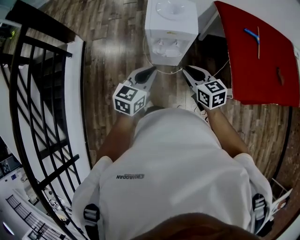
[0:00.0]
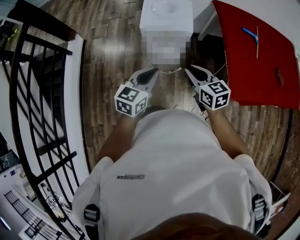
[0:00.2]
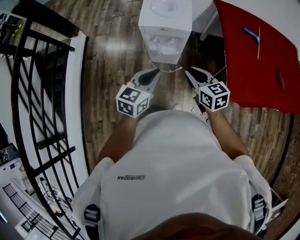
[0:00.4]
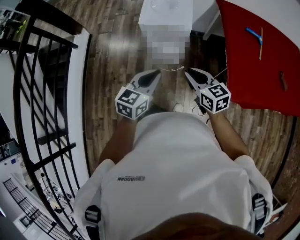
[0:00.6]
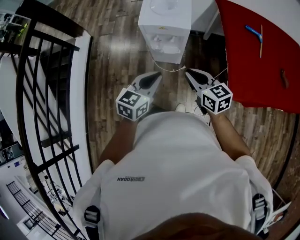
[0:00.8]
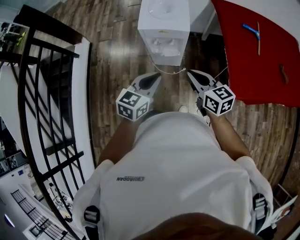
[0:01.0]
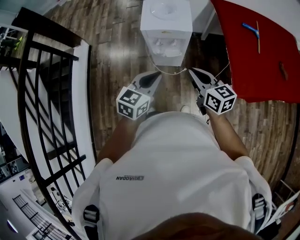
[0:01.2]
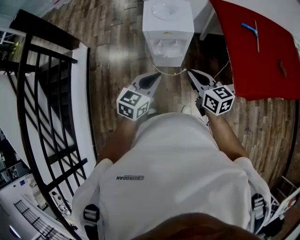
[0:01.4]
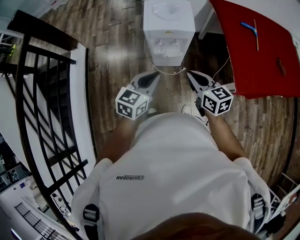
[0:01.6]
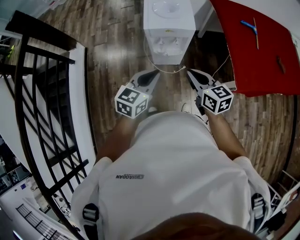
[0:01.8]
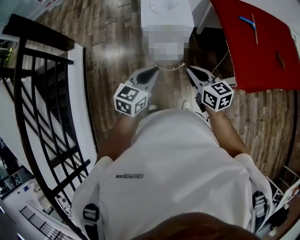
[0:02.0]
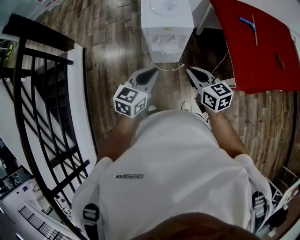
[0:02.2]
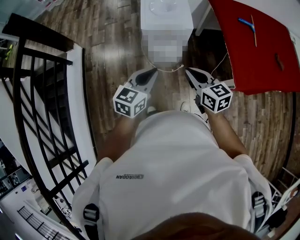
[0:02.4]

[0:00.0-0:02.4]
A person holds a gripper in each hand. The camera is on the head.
0:00.0 to 0:01.2: The left gripper moves to the right, some 5 cm. The right gripper moves some 5 cm.
0:01.2 to 0:02.4: The left gripper travels to the left by roughly 5 cm.

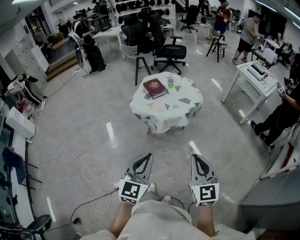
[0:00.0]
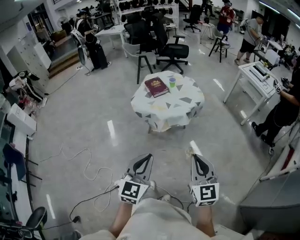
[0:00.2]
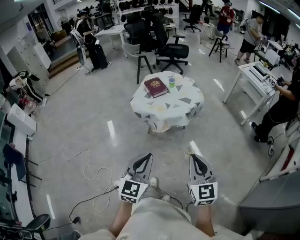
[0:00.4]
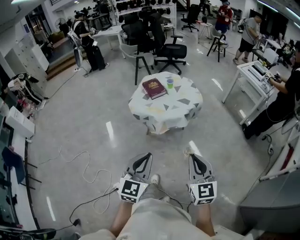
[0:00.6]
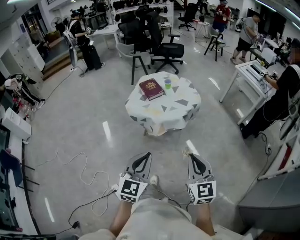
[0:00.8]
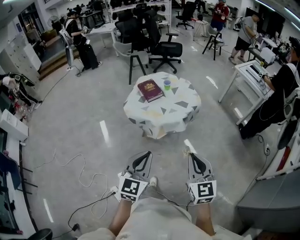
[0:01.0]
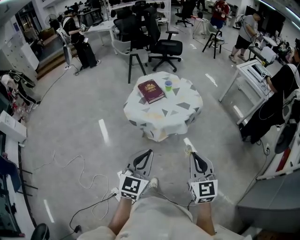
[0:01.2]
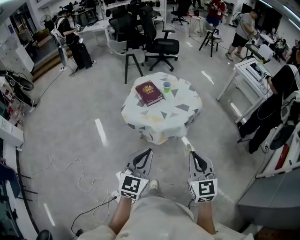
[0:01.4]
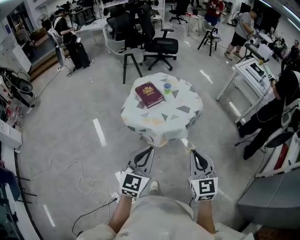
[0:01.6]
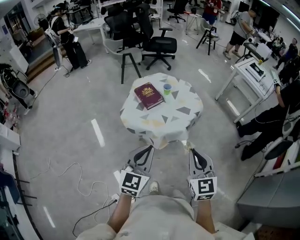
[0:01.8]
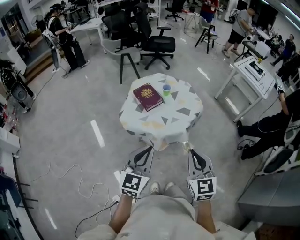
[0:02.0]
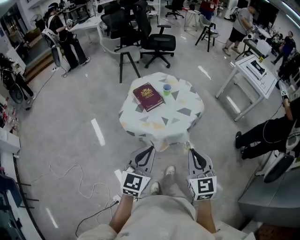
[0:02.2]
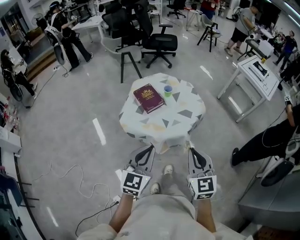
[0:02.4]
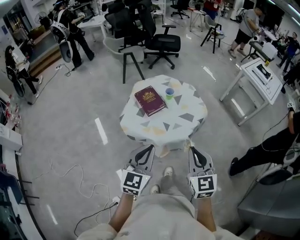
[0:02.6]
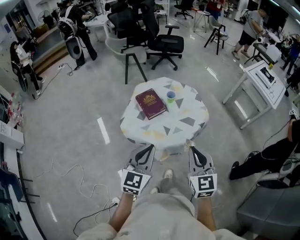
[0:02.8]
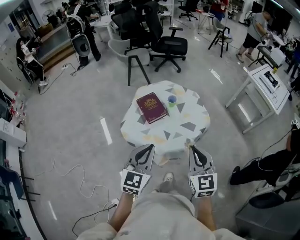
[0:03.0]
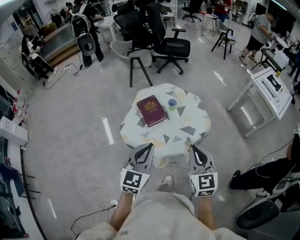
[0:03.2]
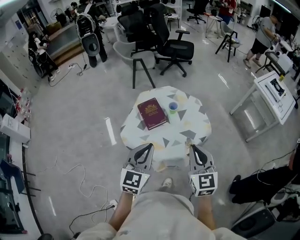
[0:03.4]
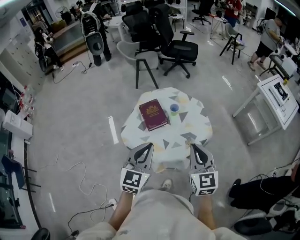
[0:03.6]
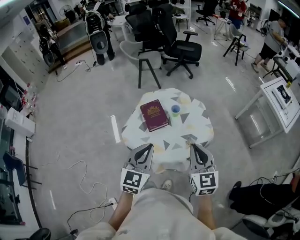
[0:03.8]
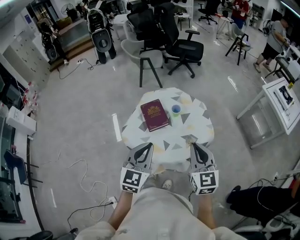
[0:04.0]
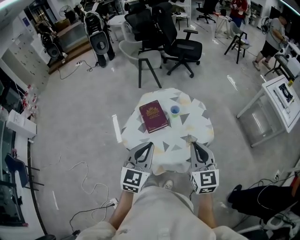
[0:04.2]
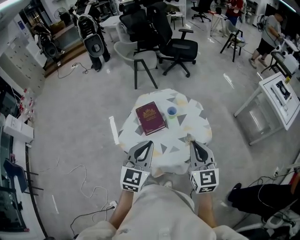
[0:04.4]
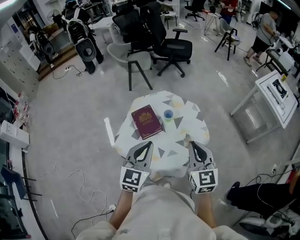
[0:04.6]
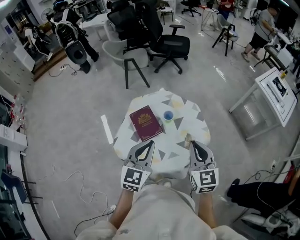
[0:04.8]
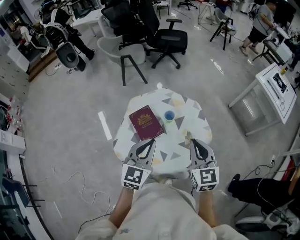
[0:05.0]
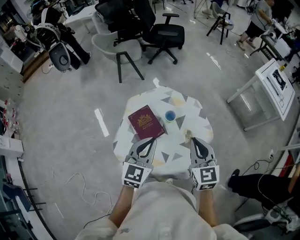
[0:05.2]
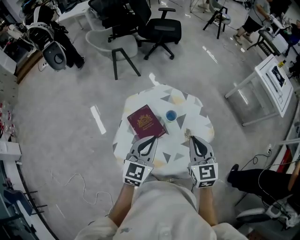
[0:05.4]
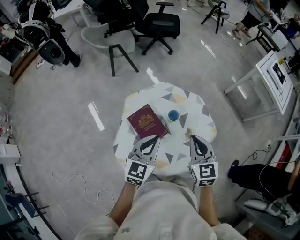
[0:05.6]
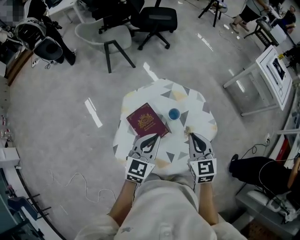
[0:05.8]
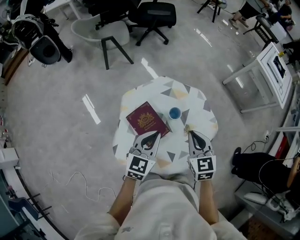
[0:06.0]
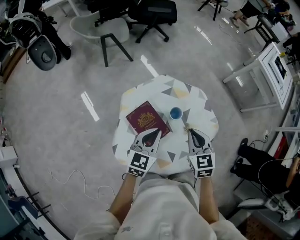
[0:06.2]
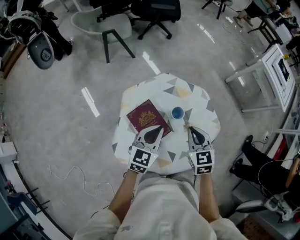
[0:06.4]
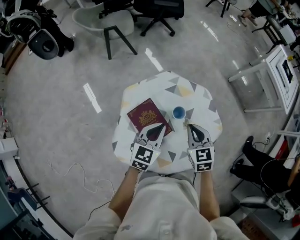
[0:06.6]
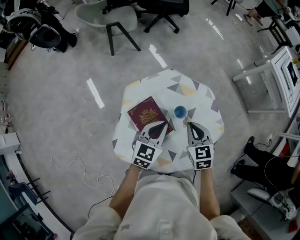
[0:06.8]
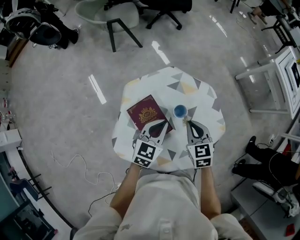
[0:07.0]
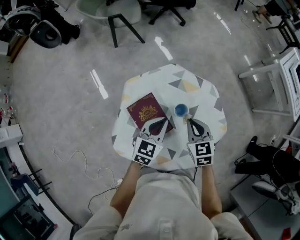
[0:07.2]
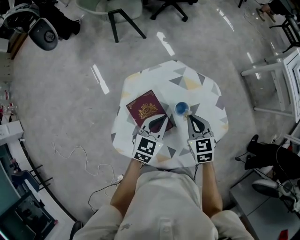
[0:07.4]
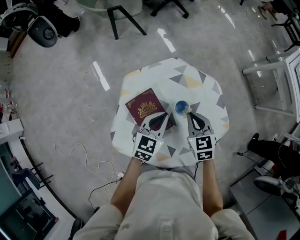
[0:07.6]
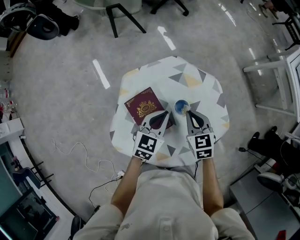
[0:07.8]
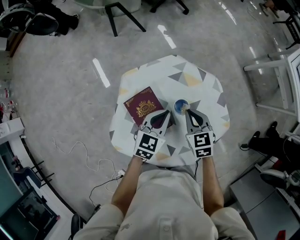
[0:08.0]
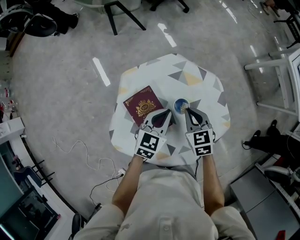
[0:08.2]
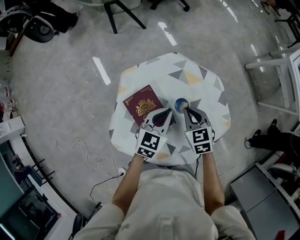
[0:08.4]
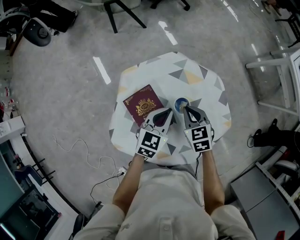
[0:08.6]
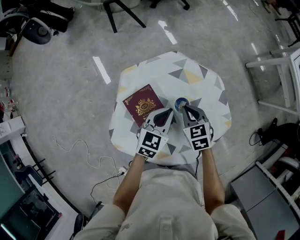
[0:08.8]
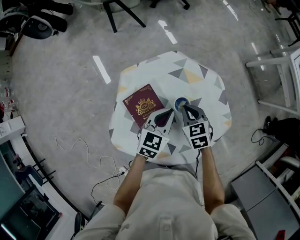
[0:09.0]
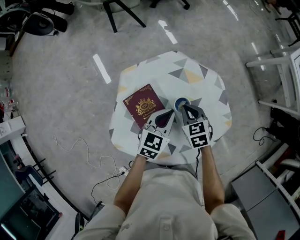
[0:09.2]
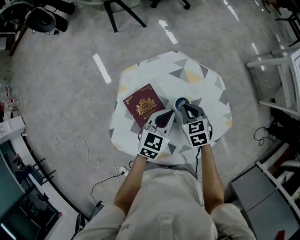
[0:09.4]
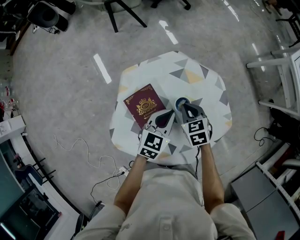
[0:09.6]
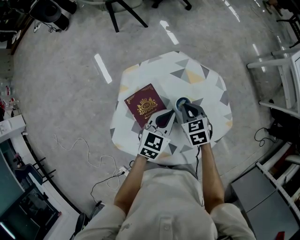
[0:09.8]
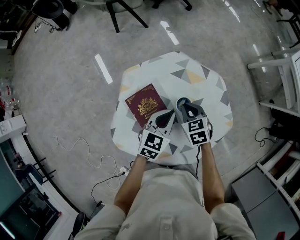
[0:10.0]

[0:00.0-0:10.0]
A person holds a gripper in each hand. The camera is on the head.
0:00.0 to 0:01.4: Both grippers travel together forward, some 15 cm.
0:01.4 to 0:02.8: The grippers both shift forward by about 20 cm.
0:02.8 to 0:04.2: Both grippers travel together forward, roughly 15 cm.
0:04.2 to 0:05.8: The right gripper moves forward, downward and to the left, roughly 20 cm, and turns by some 20 degrees, while the left gripper travels forward and downward by approximately 25 cm, and rotates approximately 30 degrees.
0:05.8 to 0:07.2: The grippers both shift downward and forward by approximately 15 cm.
0:07.2 to 0:08.6: The right gripper is displaced downward by roughly 5 cm.
0:08.6 to 0:10.0: The grippers stay close to where they were, moving slightly.

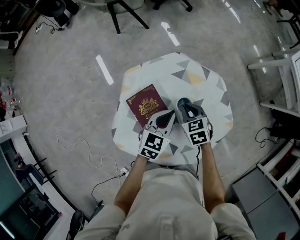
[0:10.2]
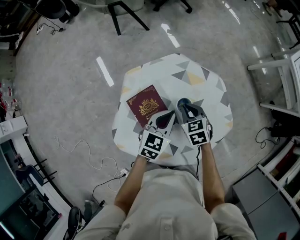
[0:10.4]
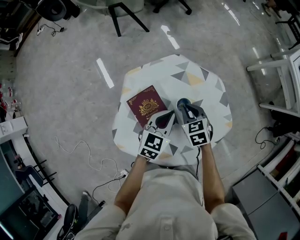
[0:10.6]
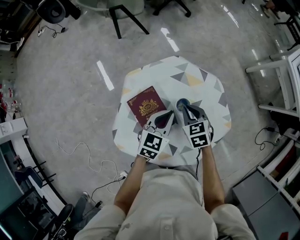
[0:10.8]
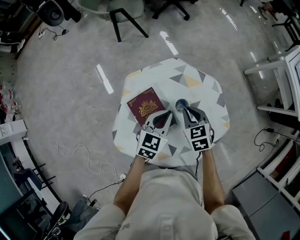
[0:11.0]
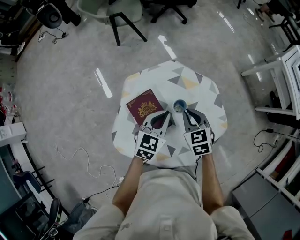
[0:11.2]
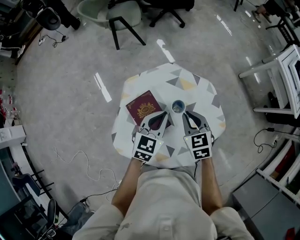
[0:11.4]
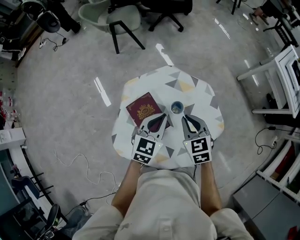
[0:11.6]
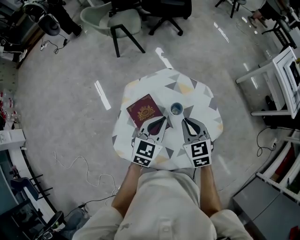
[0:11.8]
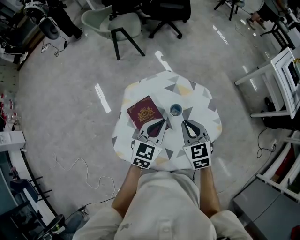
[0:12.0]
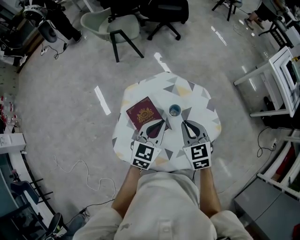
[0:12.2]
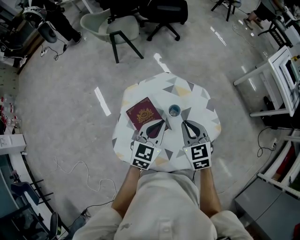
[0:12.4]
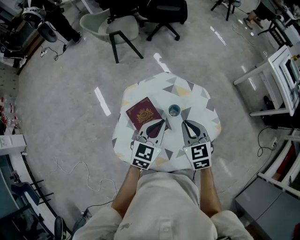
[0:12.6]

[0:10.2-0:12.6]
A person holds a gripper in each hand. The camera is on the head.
0:10.2 to 0:11.4: The right gripper is displaced upward by roughly 10 cm; the left gripper heads upward, covering about 5 cm.
0:11.4 to 0:12.6: The right gripper shifts approximately 5 cm upward.

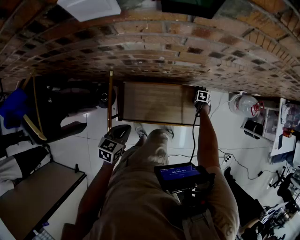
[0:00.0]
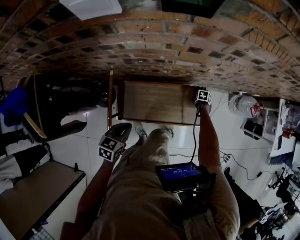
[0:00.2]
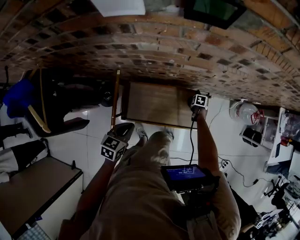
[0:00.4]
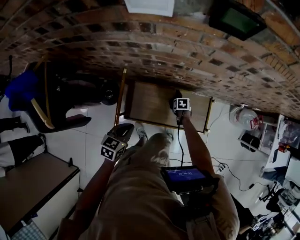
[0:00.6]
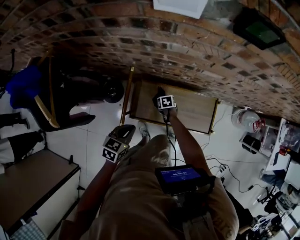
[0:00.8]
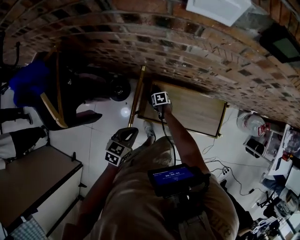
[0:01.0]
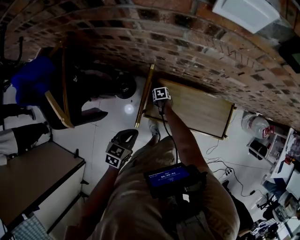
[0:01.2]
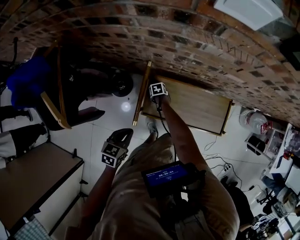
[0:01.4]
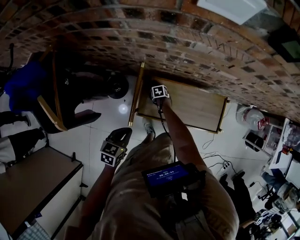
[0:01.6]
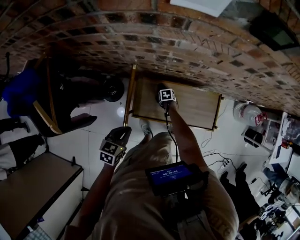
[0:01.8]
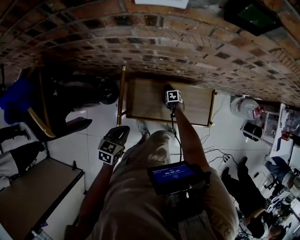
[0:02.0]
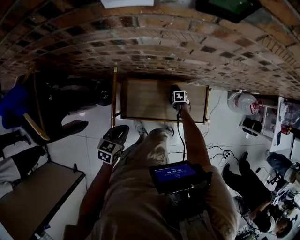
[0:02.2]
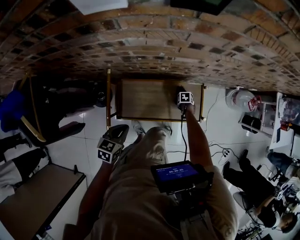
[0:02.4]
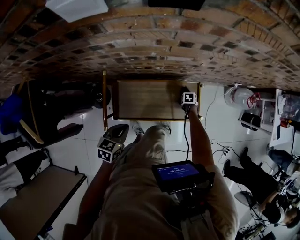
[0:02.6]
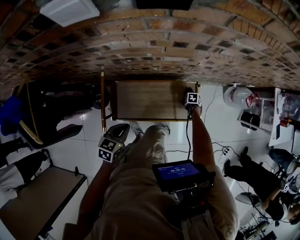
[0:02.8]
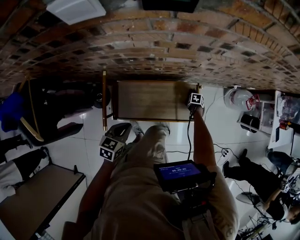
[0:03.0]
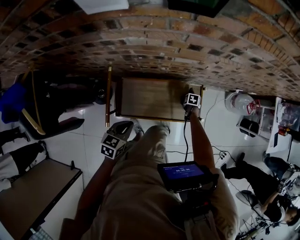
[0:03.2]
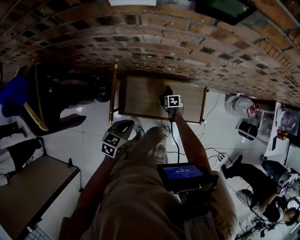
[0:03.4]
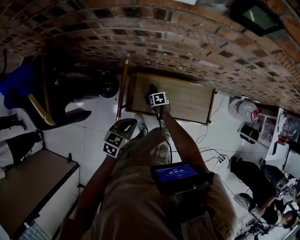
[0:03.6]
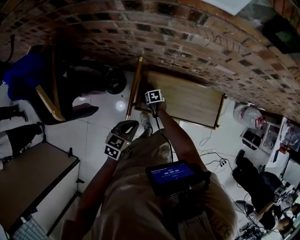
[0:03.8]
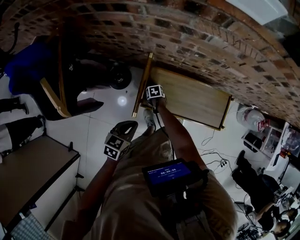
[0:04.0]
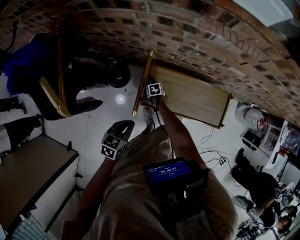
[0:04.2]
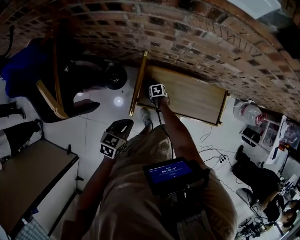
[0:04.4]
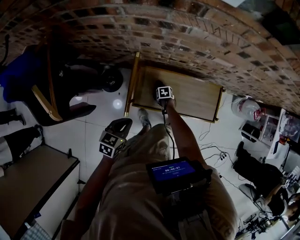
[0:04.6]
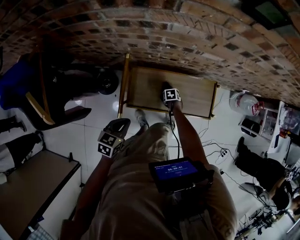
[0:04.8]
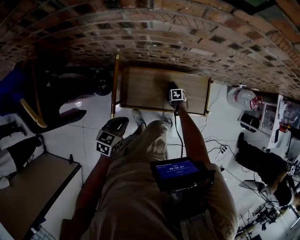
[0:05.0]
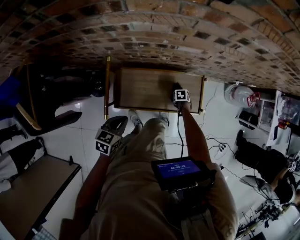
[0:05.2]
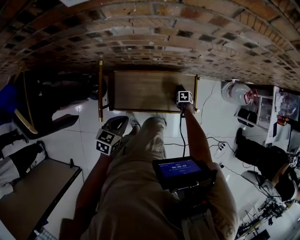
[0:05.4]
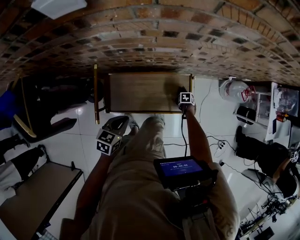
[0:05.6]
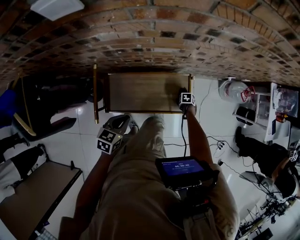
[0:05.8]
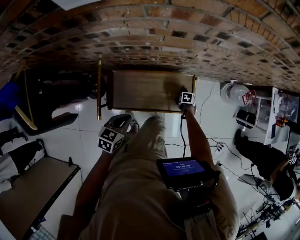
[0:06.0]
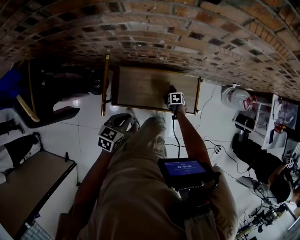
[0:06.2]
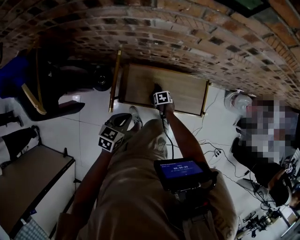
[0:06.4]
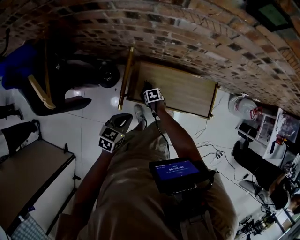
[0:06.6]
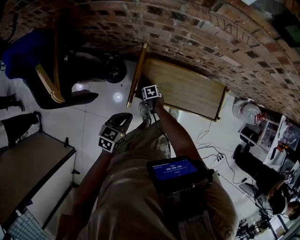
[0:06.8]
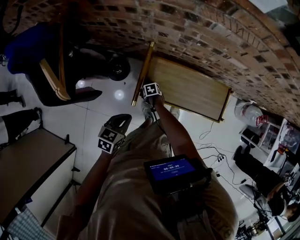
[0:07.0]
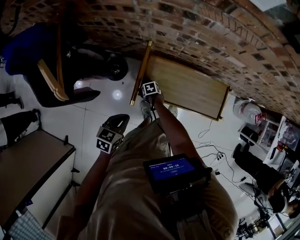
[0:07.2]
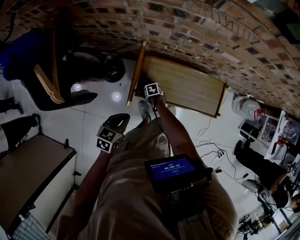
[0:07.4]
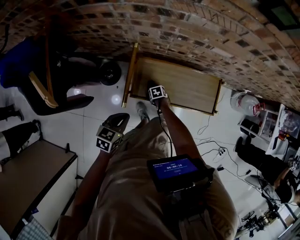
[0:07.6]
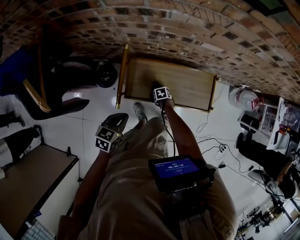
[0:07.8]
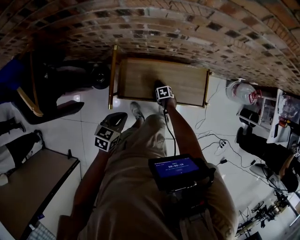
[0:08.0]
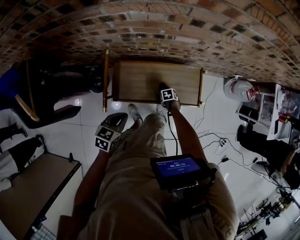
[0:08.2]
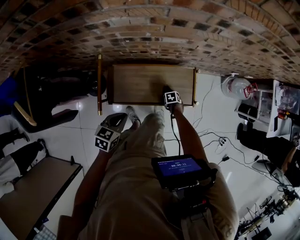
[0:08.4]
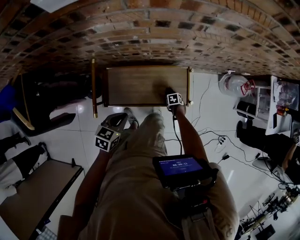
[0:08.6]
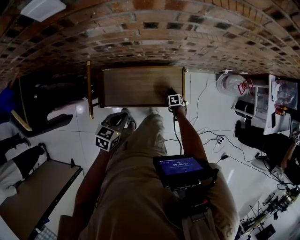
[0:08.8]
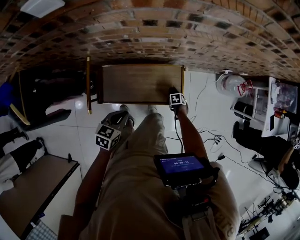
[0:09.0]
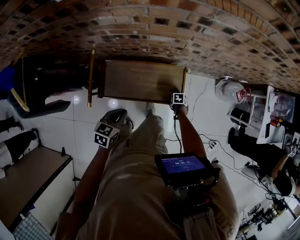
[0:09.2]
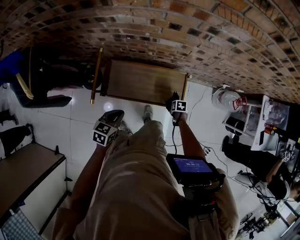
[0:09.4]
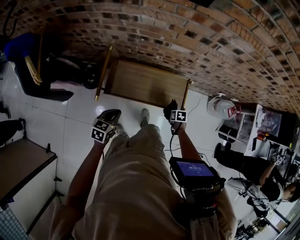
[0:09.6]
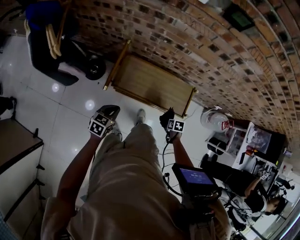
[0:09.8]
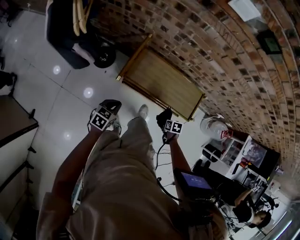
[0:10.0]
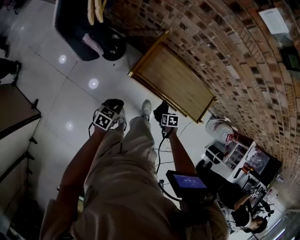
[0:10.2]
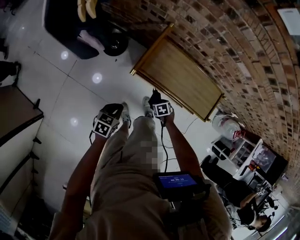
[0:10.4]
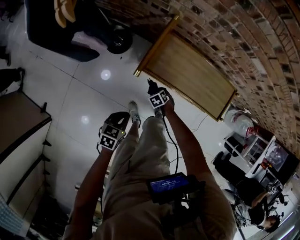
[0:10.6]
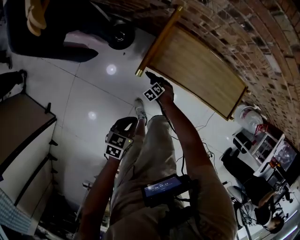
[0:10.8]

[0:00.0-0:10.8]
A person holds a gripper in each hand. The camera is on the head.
0:00.0 to 0:01.6: The left gripper ends up about 15 cm from where it was.
0:01.6 to 0:03.0: The left gripper shifts by roughly 20 cm.
0:03.0 to 0:04.6: The left gripper moves approximately 15 cm.
0:04.6 to 0:06.2: The left gripper moves roughly 15 cm.
0:07.8 to 0:09.2: The left gripper ends up about 20 cm from where it was.
0:09.2 to 0:10.8: The left gripper shifts by approximately 35 cm, and swivels some 20 degrees.
